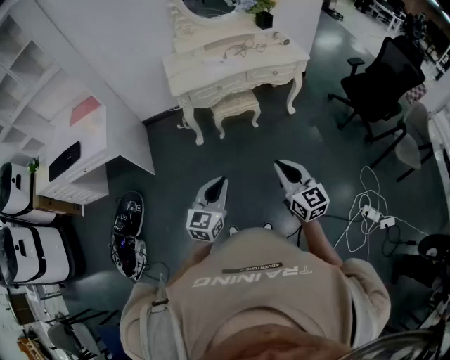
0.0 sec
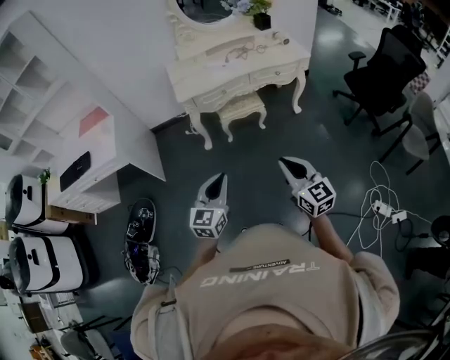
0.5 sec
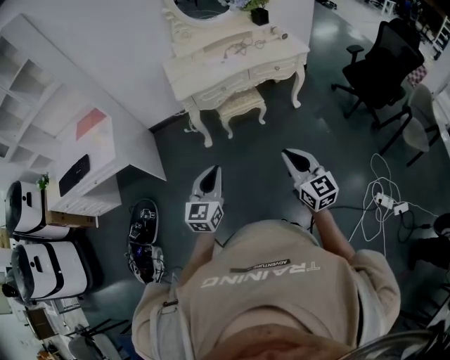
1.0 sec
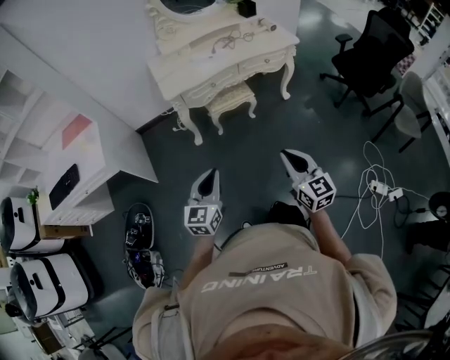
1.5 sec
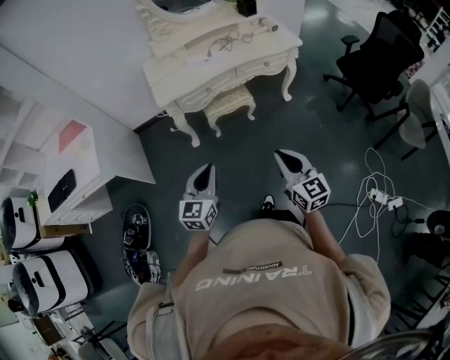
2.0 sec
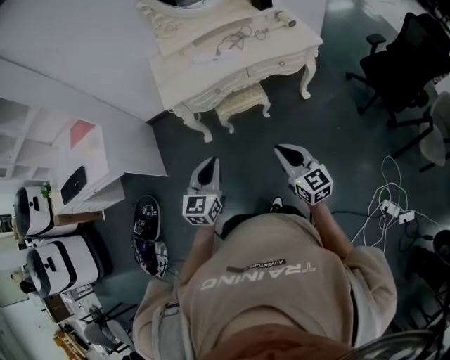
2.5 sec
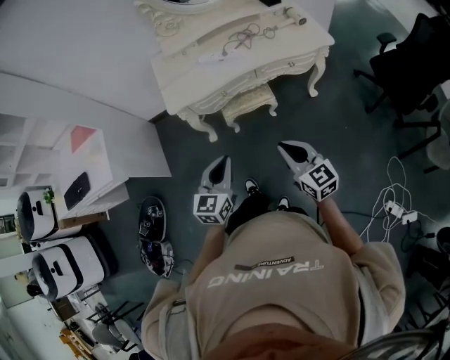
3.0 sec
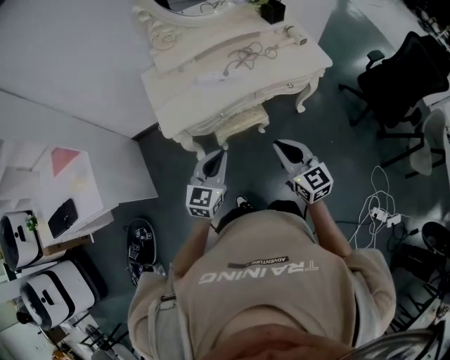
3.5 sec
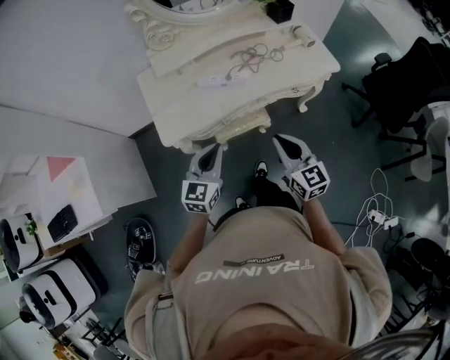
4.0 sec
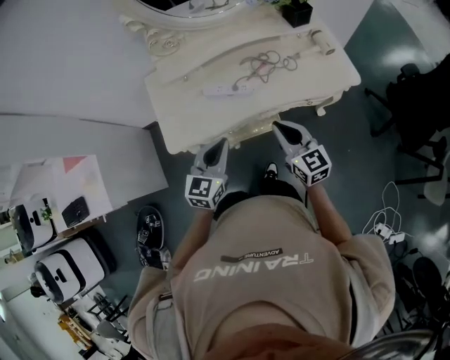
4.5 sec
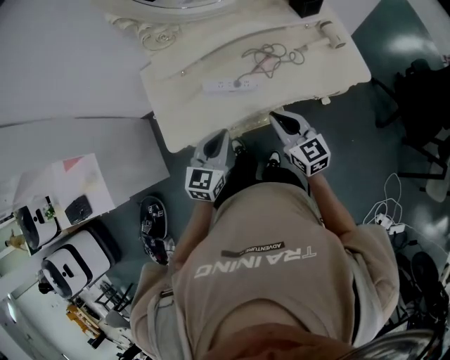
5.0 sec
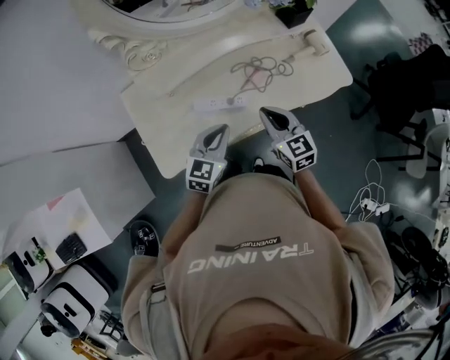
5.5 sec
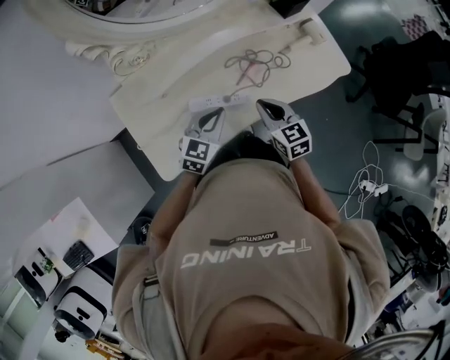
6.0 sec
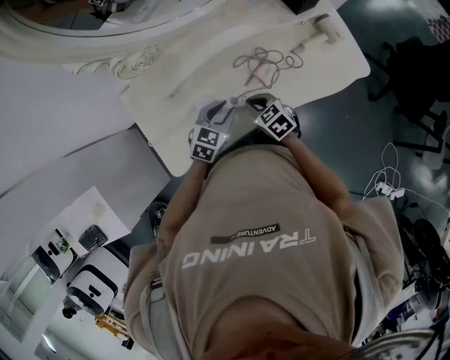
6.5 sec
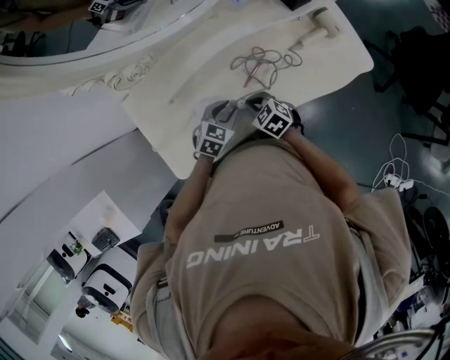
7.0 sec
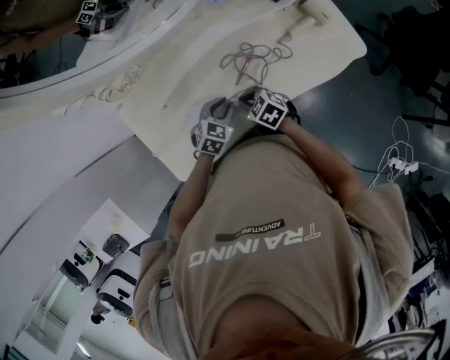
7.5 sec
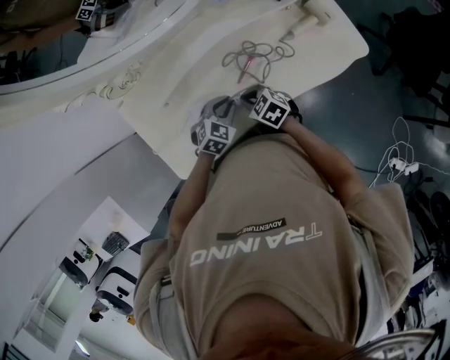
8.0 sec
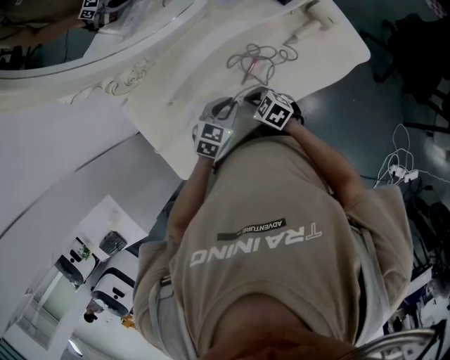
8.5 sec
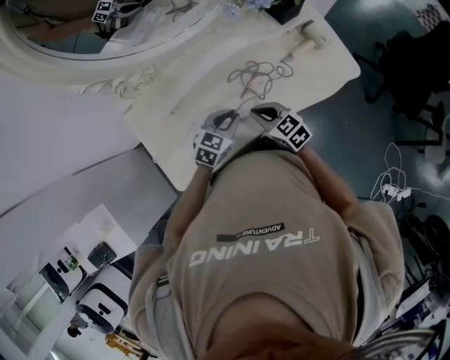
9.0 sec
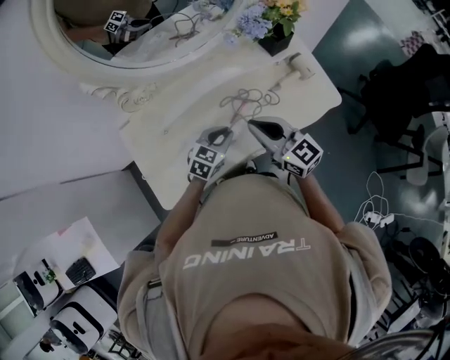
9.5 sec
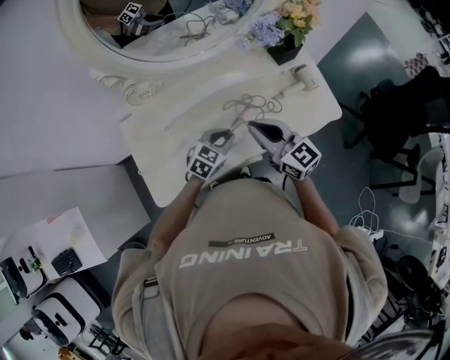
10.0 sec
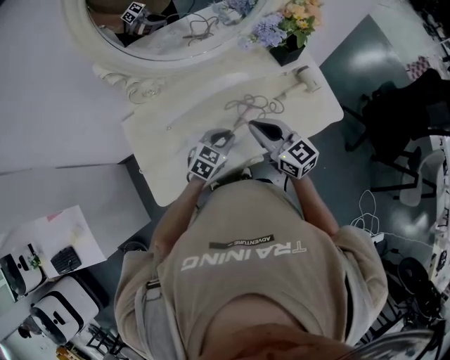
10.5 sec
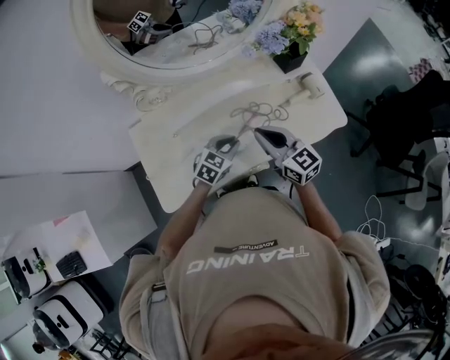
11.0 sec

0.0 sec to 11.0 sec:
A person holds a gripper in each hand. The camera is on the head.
0.0 sec to 2.0 sec: Both grippers move forward, approximately 15 cm.
2.0 sec to 3.5 sec: The two grippers go roughly 35 cm forward.
3.5 sec to 5.5 sec: Both grippers move forward, some 35 cm.
5.5 sec to 7.5 sec: The grippers both shift downward and forward by approximately 20 cm. The left gripper swivels approximately 30 degrees, and opens its fingers, while the right gripper changes its angle by about 40 degrees.
7.5 sec to 9.0 sec: The two grippers go roughly 10 cm upward. The right gripper changes its angle by approximately 20 degrees.
9.0 sec to 11.0 sec: The right gripper travels upward by about 15 cm, and changes its angle by approximately 20 degrees.

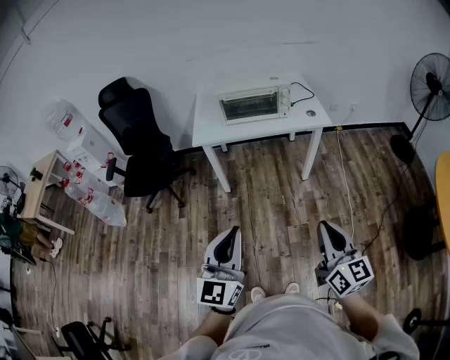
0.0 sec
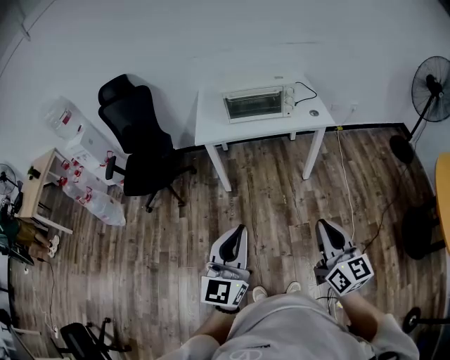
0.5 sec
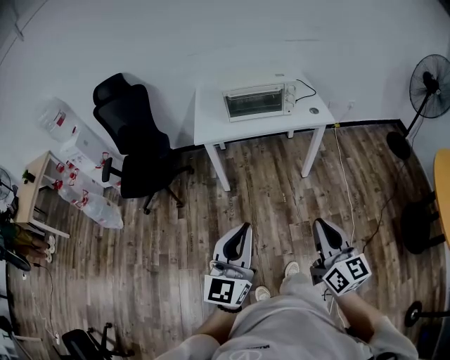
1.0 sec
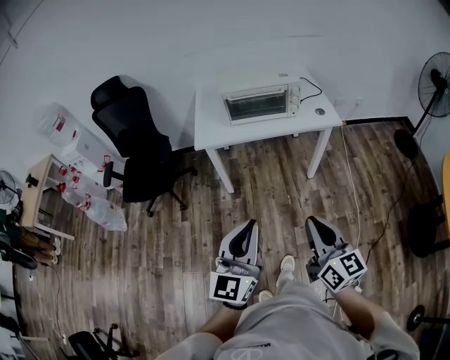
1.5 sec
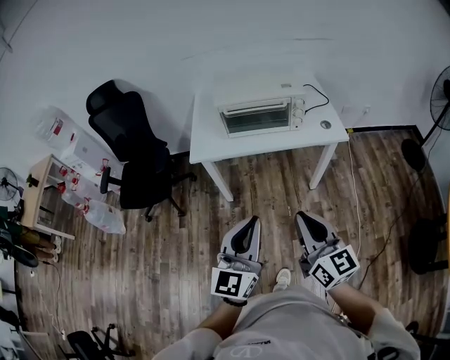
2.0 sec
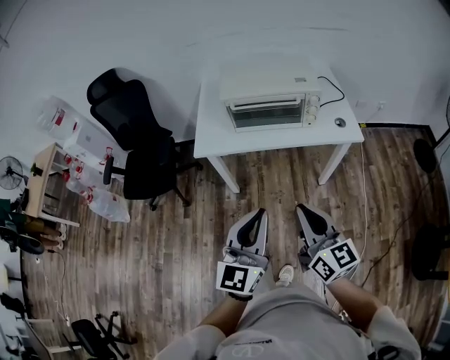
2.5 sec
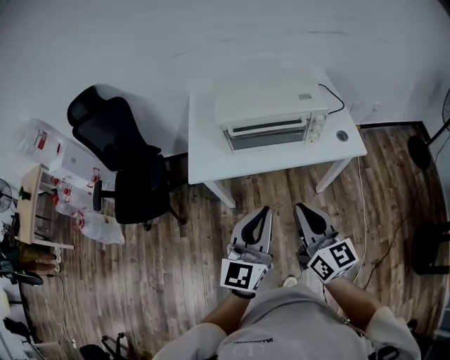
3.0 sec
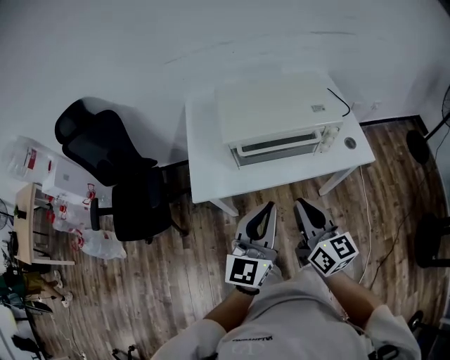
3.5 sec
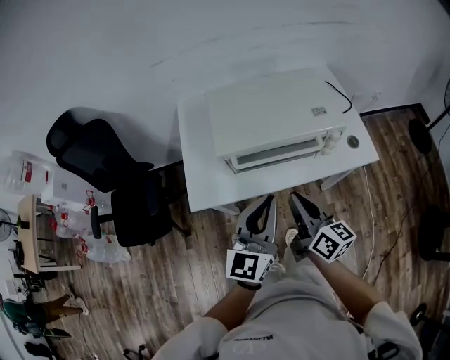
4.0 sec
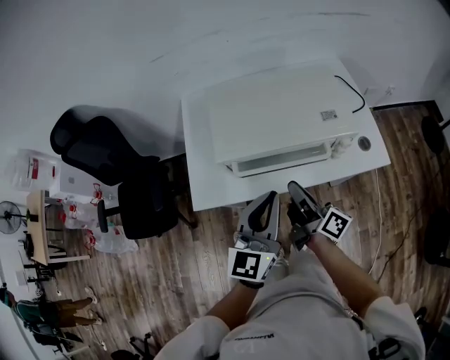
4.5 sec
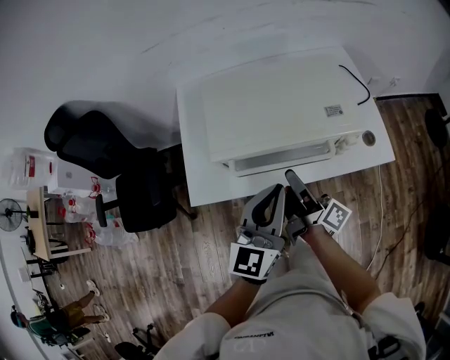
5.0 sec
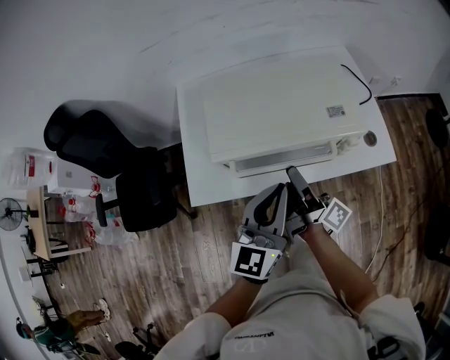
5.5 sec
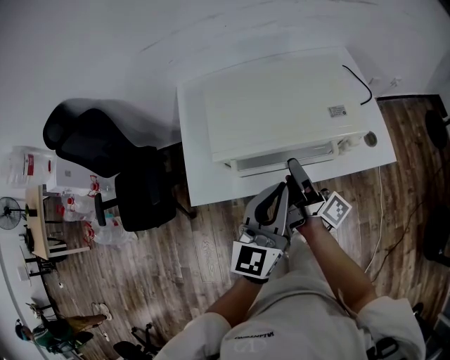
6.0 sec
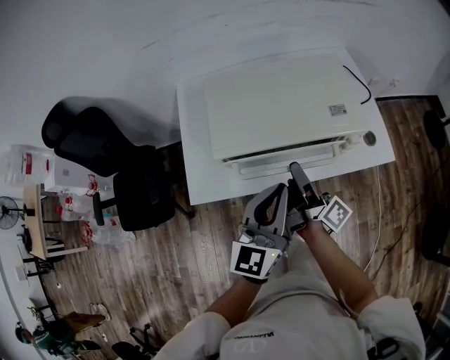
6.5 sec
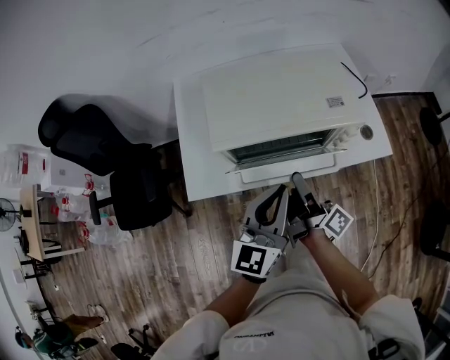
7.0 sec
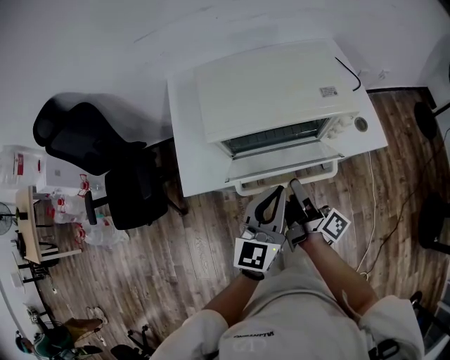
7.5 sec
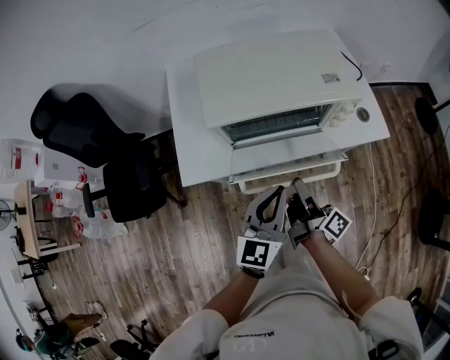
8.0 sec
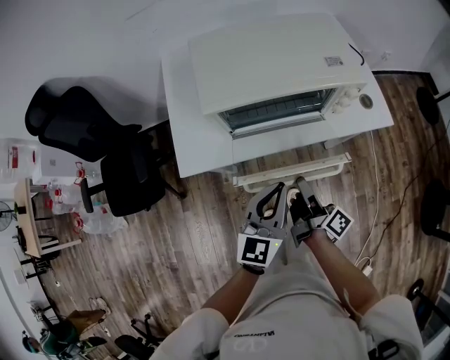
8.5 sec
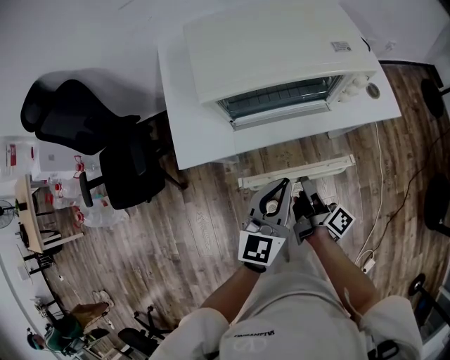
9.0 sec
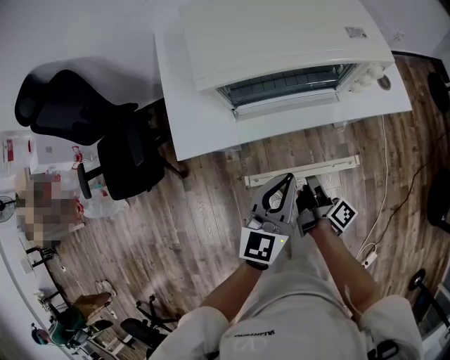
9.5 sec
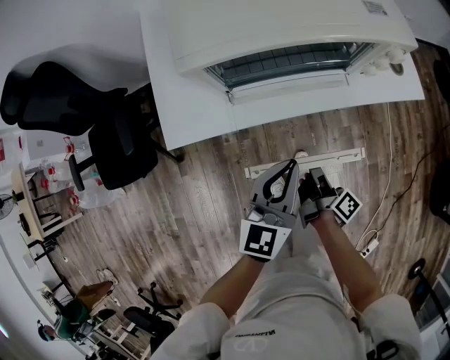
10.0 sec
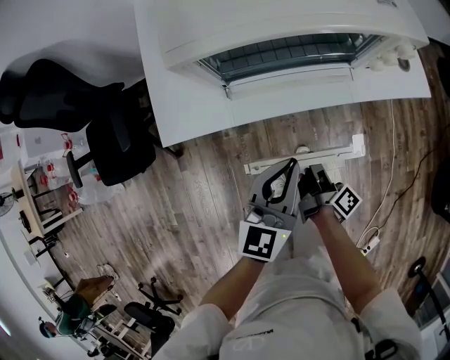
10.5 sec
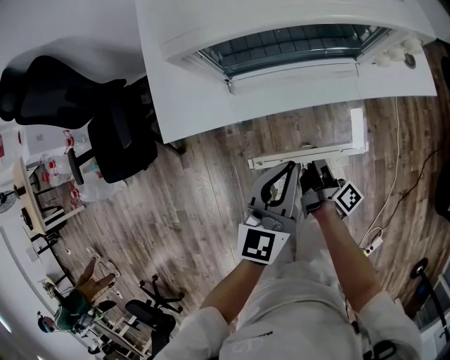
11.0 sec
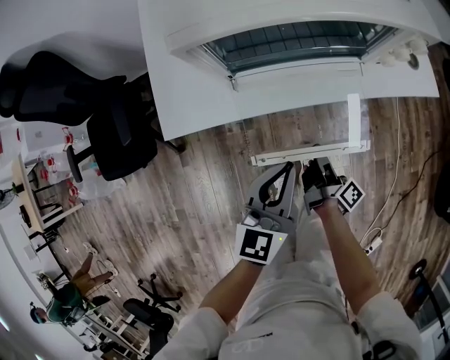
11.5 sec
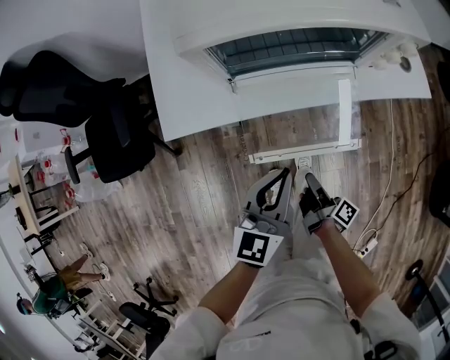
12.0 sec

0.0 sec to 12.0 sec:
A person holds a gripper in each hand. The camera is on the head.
0.0 sec to 2.0 sec: The two grippers go some 25 cm forward.
2.0 sec to 4.0 sec: Both grippers travel together forward, roughly 40 cm. The right gripper changes its angle by approximately 30 degrees.
4.0 sec to 6.0 sec: The left gripper is displaced forward by about 5 cm; the right gripper shifts about 15 cm forward, rotates around the line of its fingers by roughly 40 degrees, clockwise from behind, and opens up.
6.0 sec to 8.0 sec: The right gripper travels backward and downward by some 15 cm. The left gripper shifts roughly 10 cm downward and backward.
8.0 sec to 10.0 sec: The right gripper shifts roughly 20 cm downward. Meanwhile the left gripper heads downward, covering some 10 cm.
10.0 sec to 12.0 sec: The right gripper travels downward and backward by approximately 10 cm, while the left gripper moves approximately 5 cm.

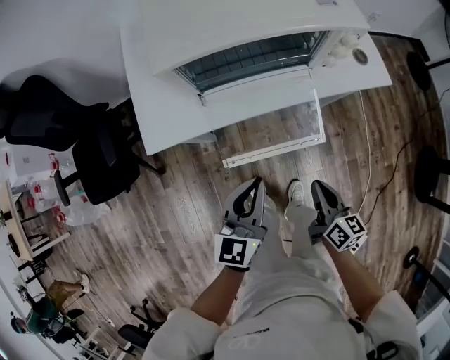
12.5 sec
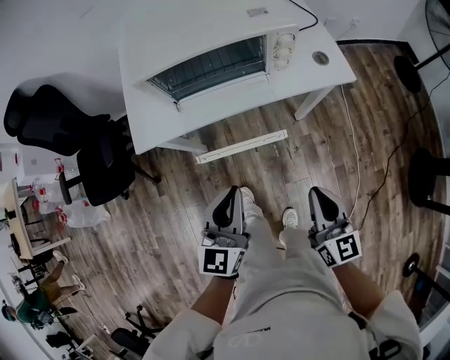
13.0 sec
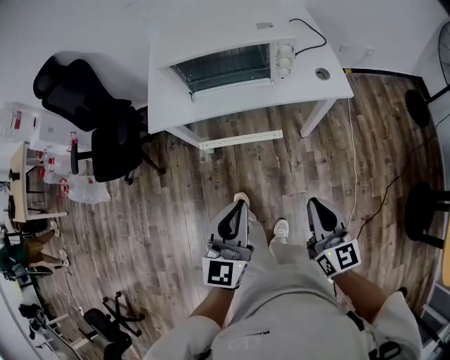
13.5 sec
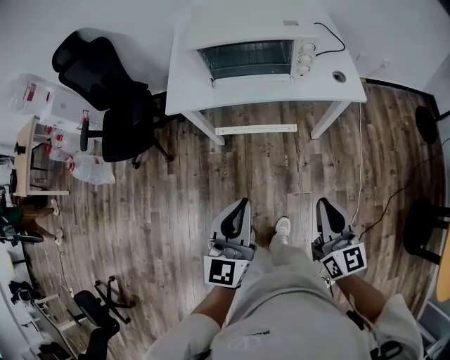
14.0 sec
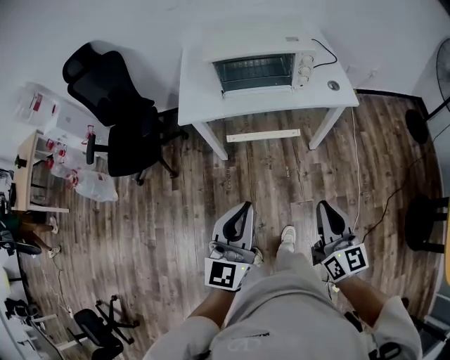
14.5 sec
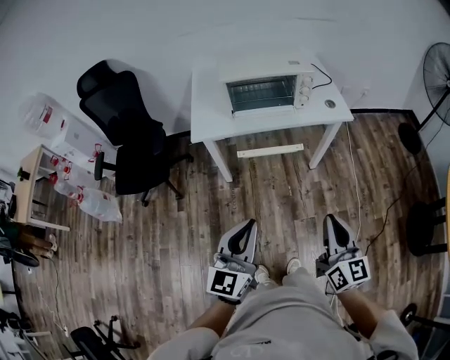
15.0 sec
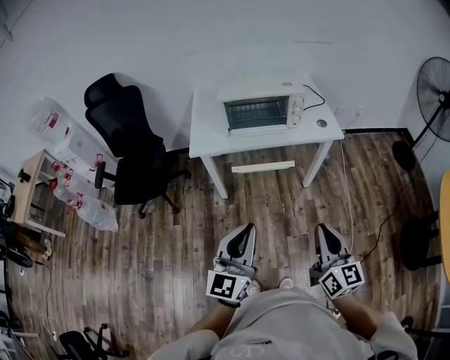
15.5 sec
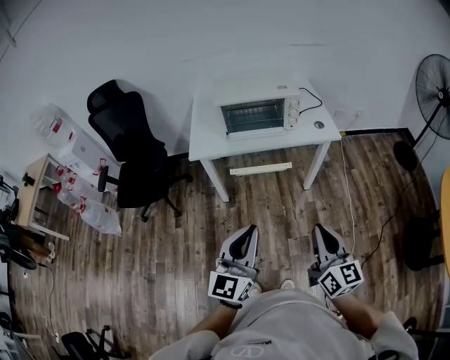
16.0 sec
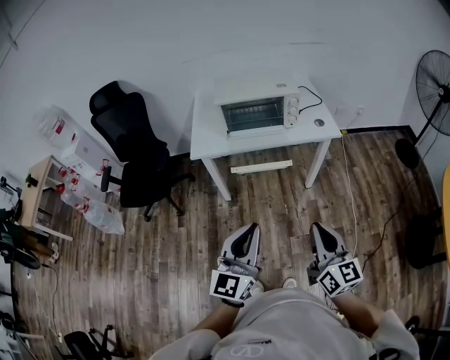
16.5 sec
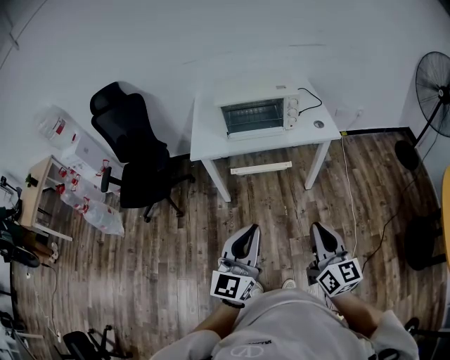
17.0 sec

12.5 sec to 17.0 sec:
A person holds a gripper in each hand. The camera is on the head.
12.5 sec to 14.5 sec: The right gripper travels upward and backward by approximately 35 cm, and changes its angle by about 30 degrees, while the left gripper goes roughly 35 cm backward and upward, and swivels some 20 degrees.
14.5 sec to 17.0 sec: The right gripper heads backward and upward, covering some 10 cm. Meanwhile the left gripper shifts some 10 cm backward.
